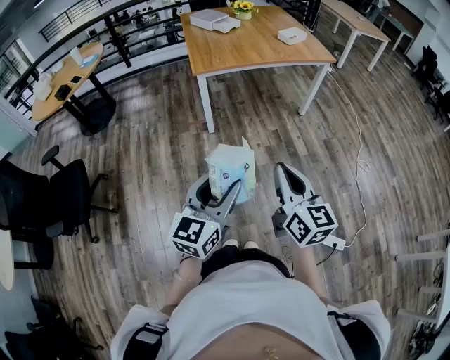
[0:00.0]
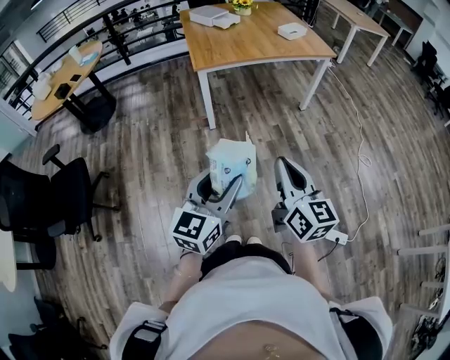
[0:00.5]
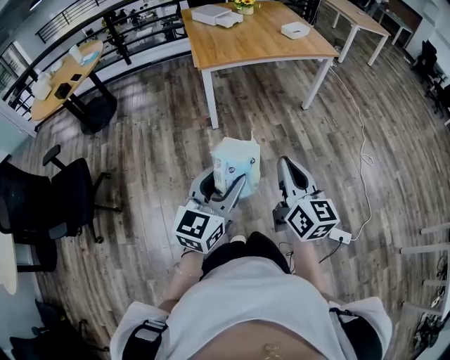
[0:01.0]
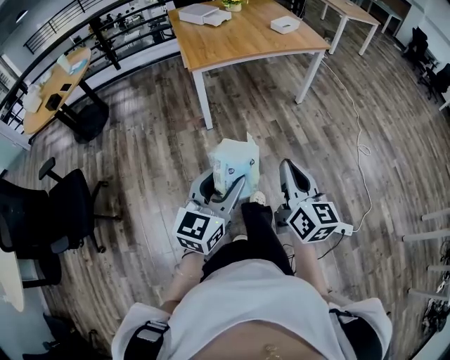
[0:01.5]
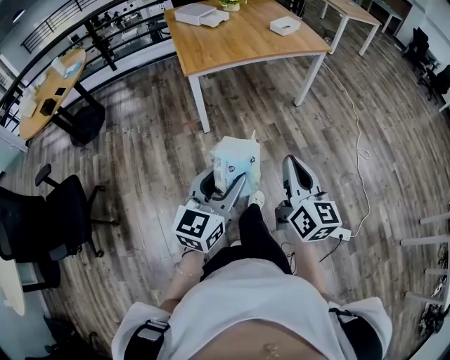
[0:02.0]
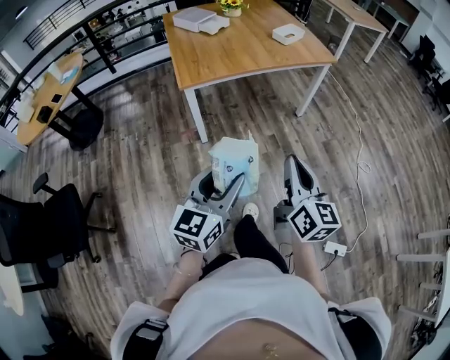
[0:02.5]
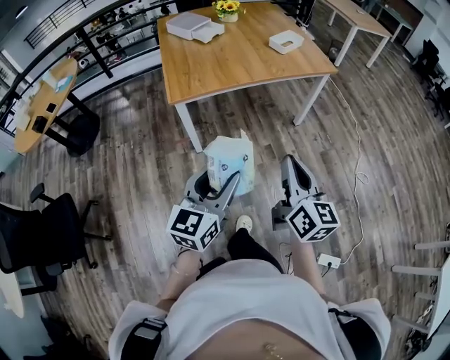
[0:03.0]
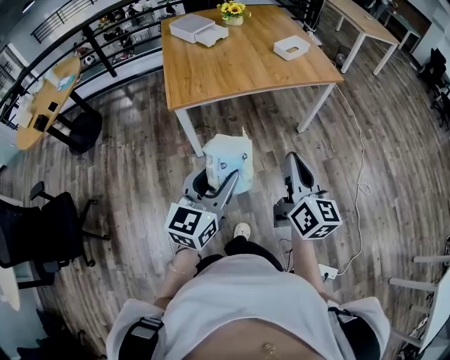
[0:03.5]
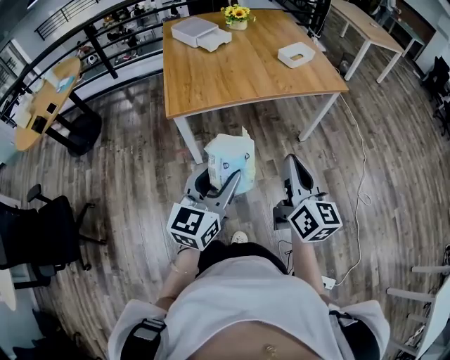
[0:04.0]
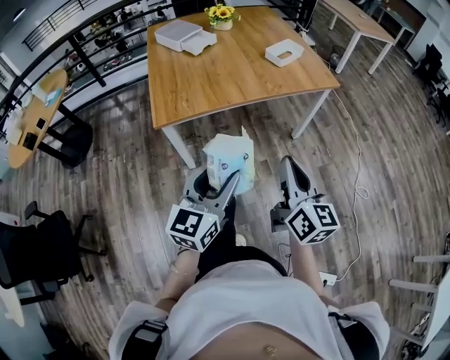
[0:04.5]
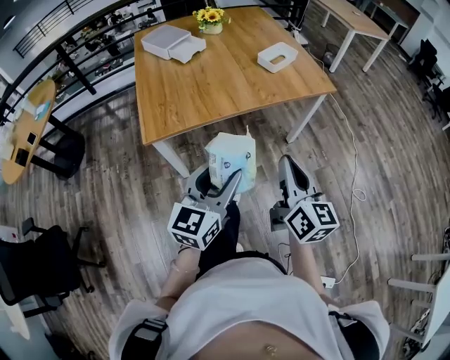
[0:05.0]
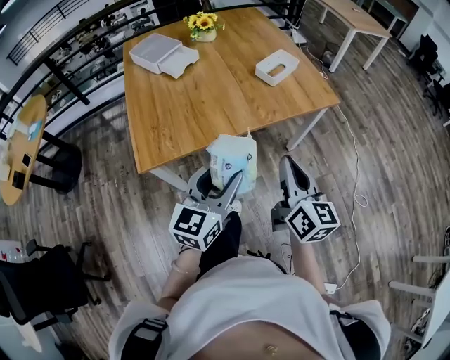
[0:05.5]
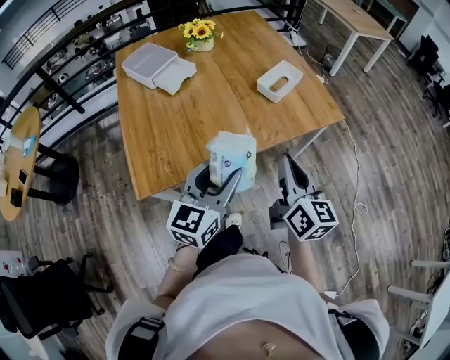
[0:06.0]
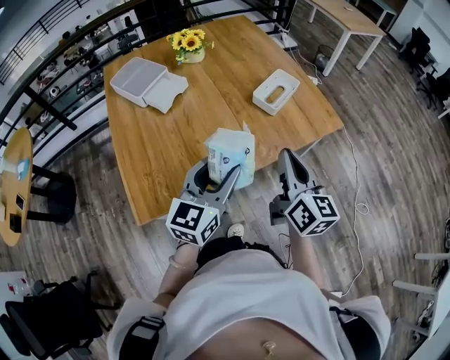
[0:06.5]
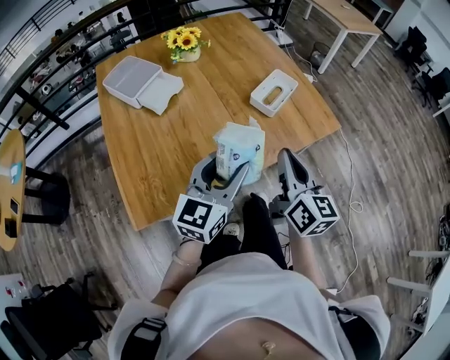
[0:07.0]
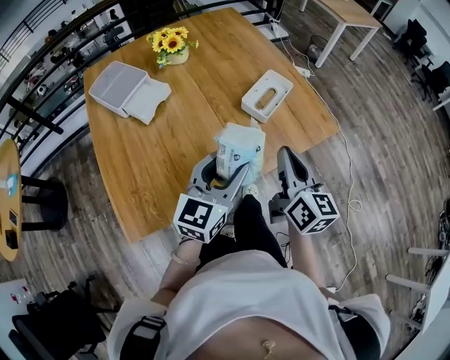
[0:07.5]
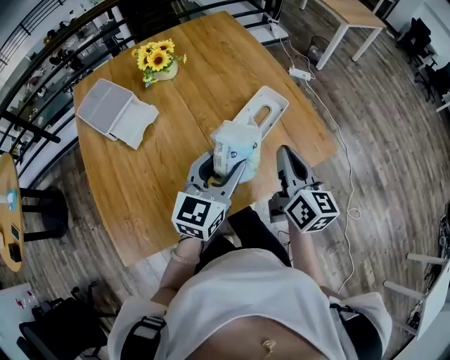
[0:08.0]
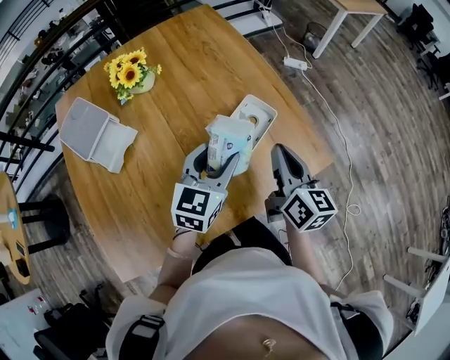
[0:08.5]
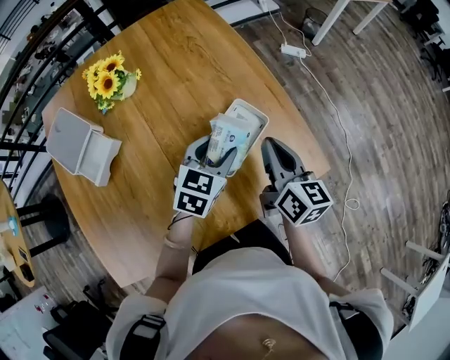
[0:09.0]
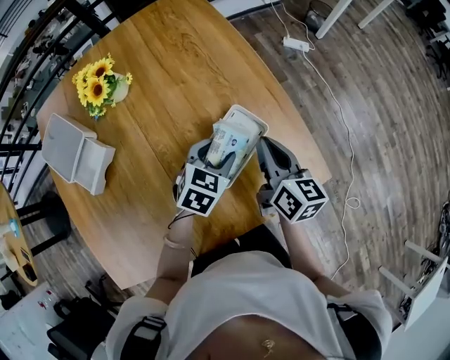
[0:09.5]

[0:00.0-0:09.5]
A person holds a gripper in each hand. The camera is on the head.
0:00.0 to 0:02.0: Both grippers move forward, about 5 cm.
0:02.0 to 0:04.0: Both grippers travel together forward, some 30 cm.
0:04.0 to 0:05.5: Both grippers travel together forward, approximately 20 cm.
0:05.5 to 0:07.5: Both grippers move forward, about 25 cm.
0:07.5 to 0:09.5: The right gripper is displaced forward by approximately 30 cm. Meanwhile the left gripper shifts about 35 cm forward and downward, and tilts its fingers approximately 40 degrees downward.

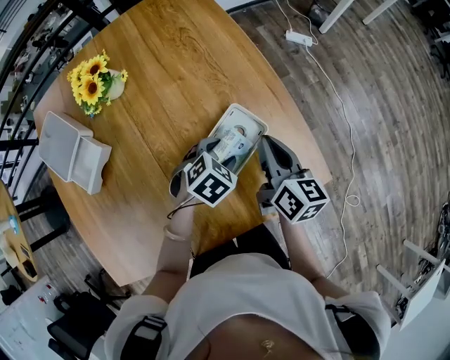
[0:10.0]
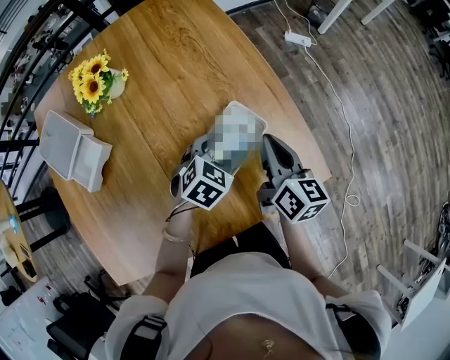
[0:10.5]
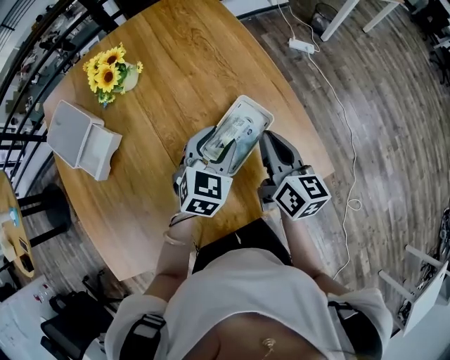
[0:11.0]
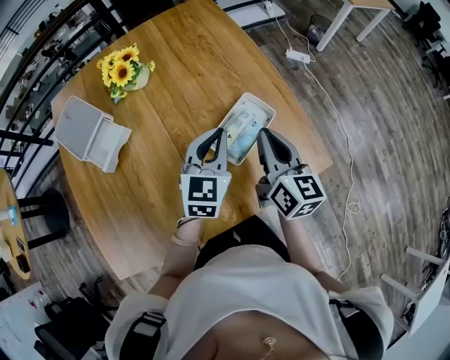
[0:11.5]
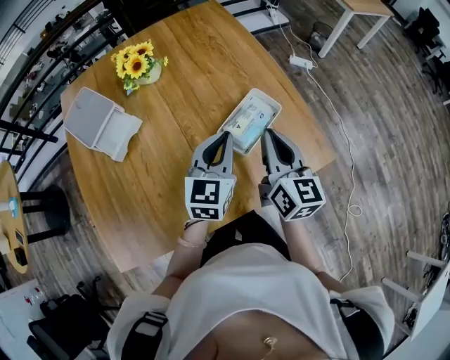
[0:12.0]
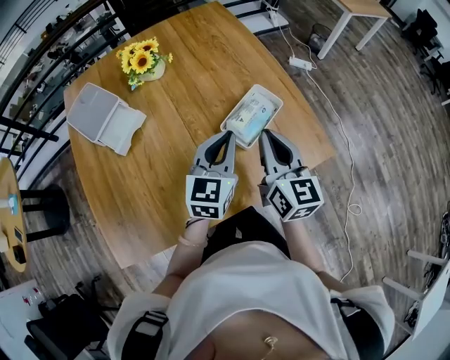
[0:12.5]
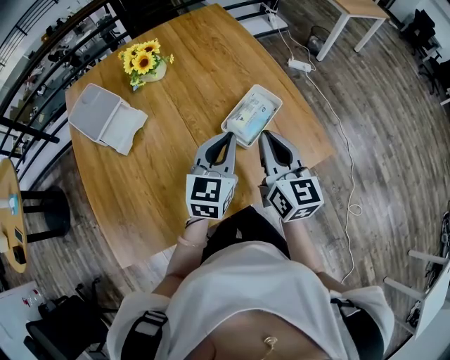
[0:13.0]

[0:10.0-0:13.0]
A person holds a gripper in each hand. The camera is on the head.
0:10.0 to 0:11.5: The left gripper shifts about 15 cm upward, points its fingers roughly 40 degrees further upward, and closes up, while the right gripper shifts approximately 10 cm upward and backward.
0:11.5 to 0:13.0: Both grippers move backward, approximately 10 cm.

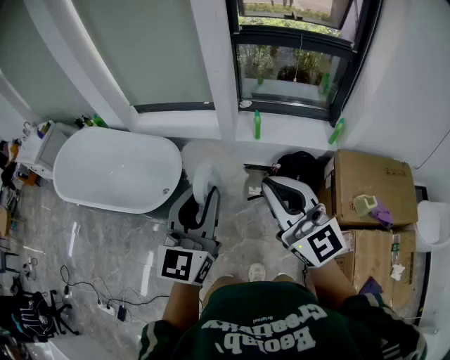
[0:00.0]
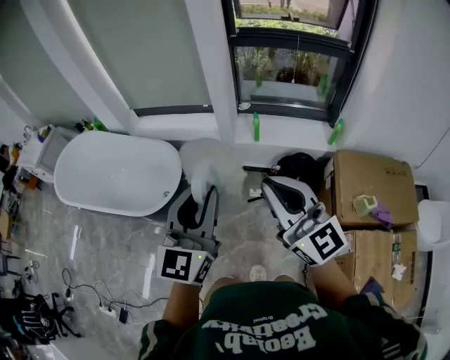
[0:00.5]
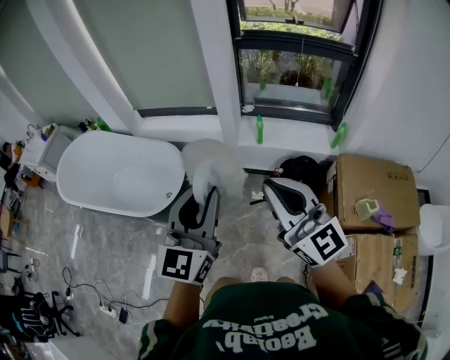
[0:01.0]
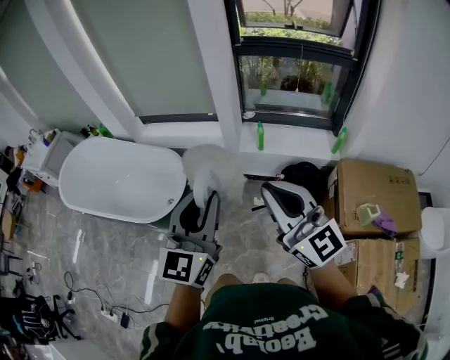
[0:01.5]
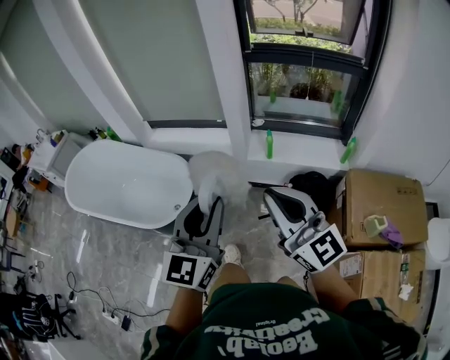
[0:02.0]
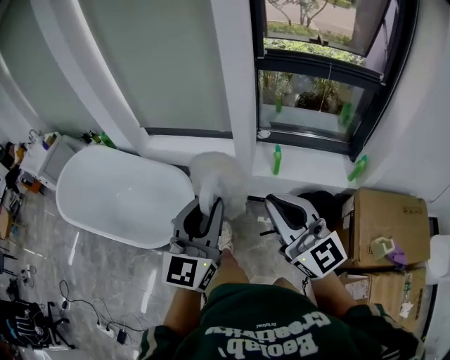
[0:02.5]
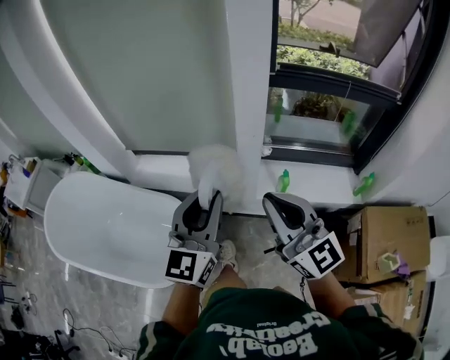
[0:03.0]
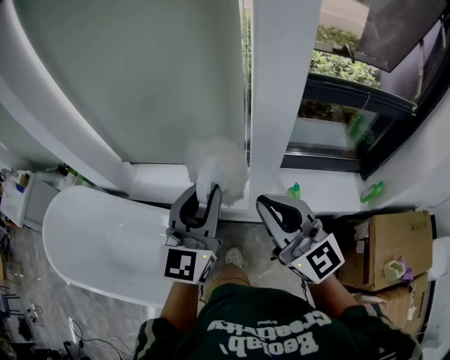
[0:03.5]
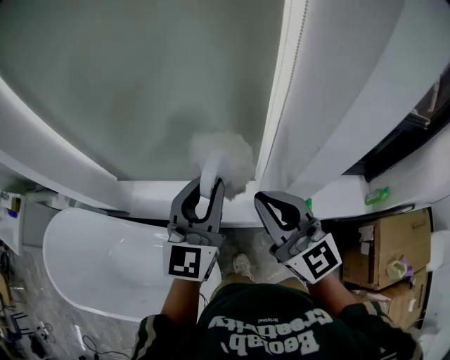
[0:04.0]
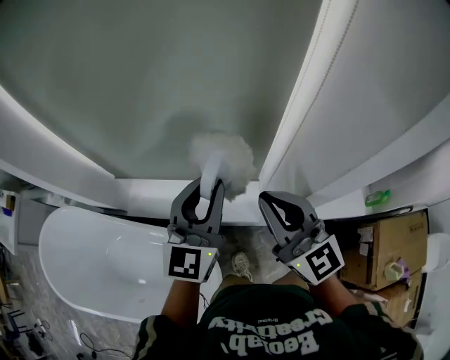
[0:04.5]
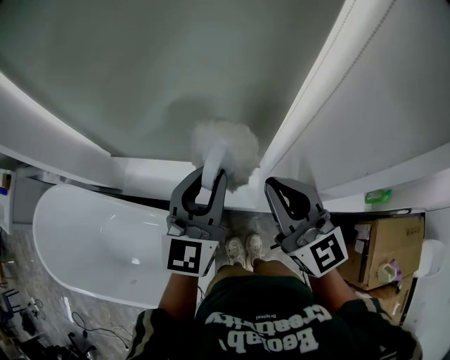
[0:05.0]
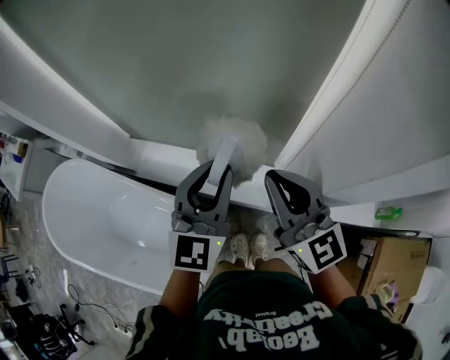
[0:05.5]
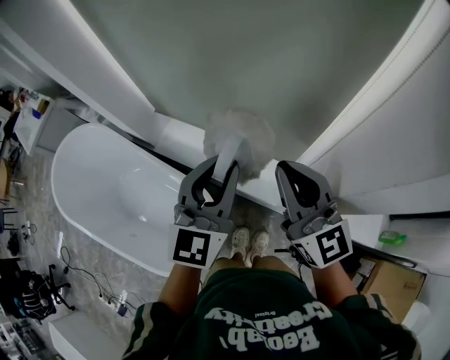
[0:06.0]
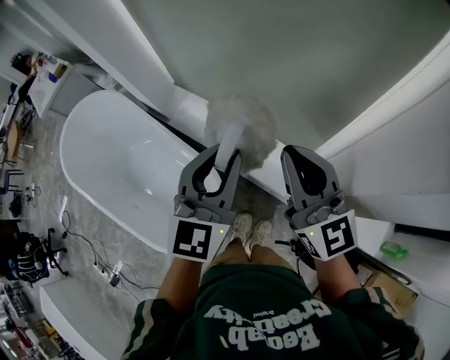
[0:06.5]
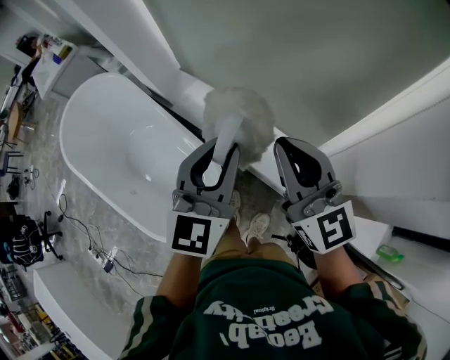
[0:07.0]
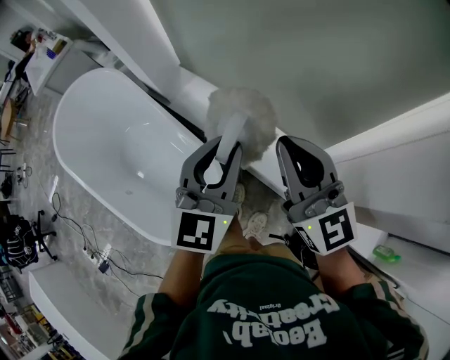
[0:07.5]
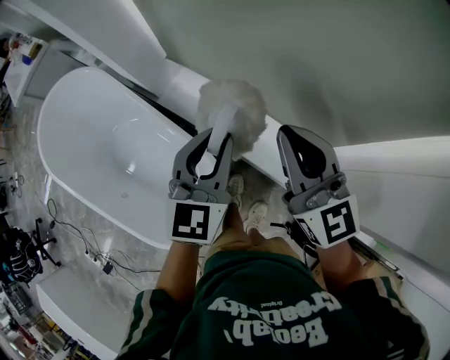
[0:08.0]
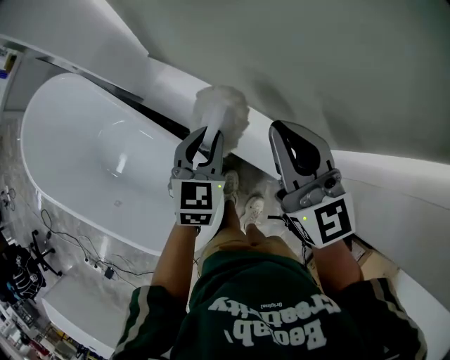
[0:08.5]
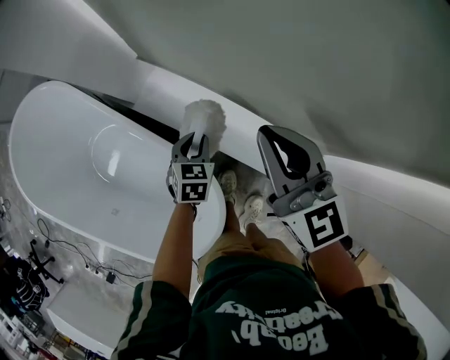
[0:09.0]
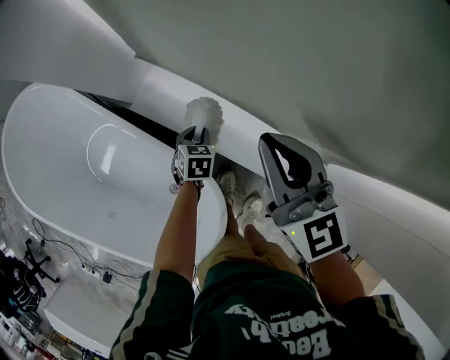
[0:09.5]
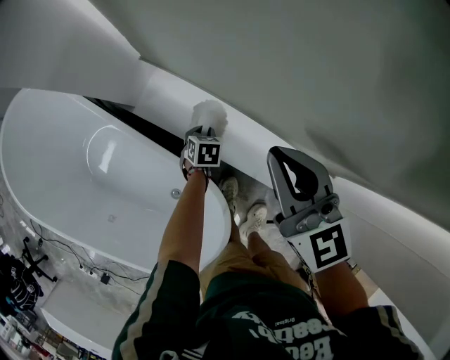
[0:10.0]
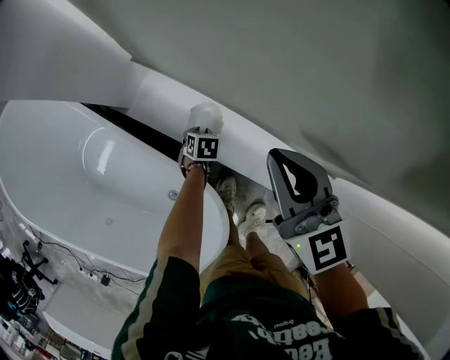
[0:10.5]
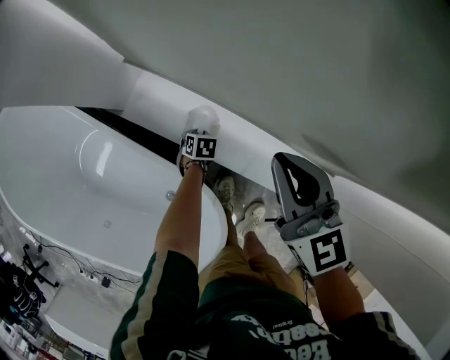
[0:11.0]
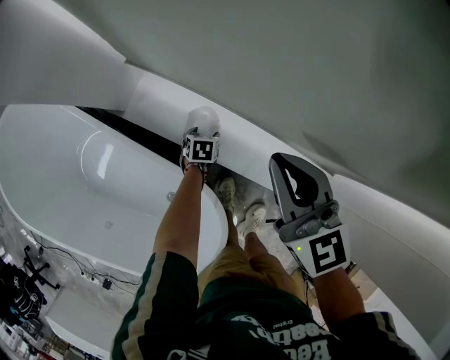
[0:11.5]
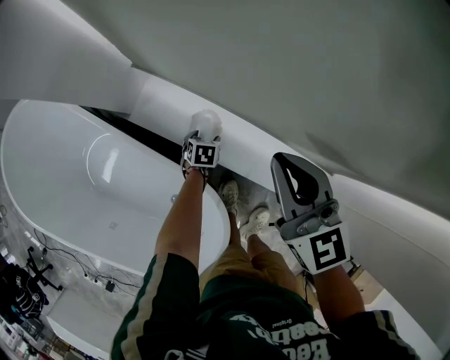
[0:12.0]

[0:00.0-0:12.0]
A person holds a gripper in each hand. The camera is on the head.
0:00.0 to 0:02.0: The grippers stay close to where they were, moving slightly.
0:02.0 to 0:04.0: The pair of grippers is taken forward, roughly 60 cm.
0:04.0 to 0:06.0: The left gripper changes place by some 5 cm, and rotates some 20 degrees. Meanwhile the right gripper shifts by approximately 5 cm.
0:06.0 to 0:08.0: The left gripper shifts roughly 15 cm downward, to the left and forward; the right gripper heads forward, to the left and downward, covering about 15 cm.
0:08.0 to 0:10.0: The right gripper heads downward, forward and to the left, covering about 20 cm. The left gripper travels downward by about 50 cm, and angles its fingers downward, by approximately 50 degrees.
0:10.0 to 0:12.0: The left gripper is displaced downward by roughly 5 cm, and opens up.

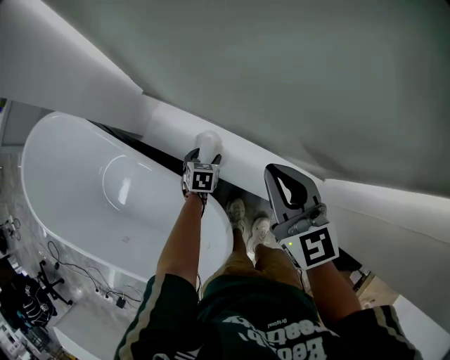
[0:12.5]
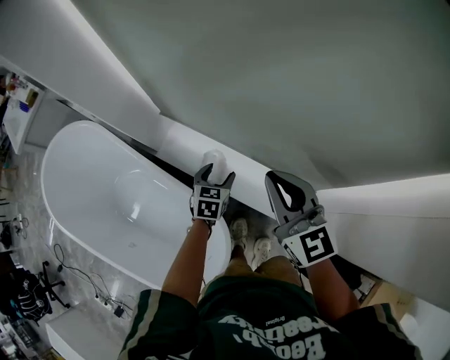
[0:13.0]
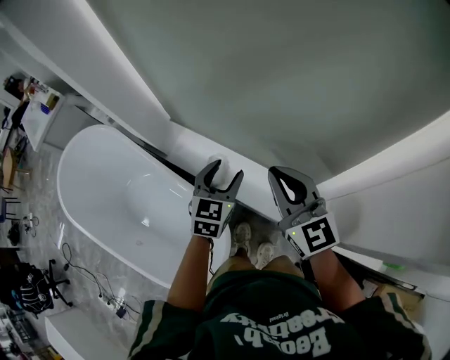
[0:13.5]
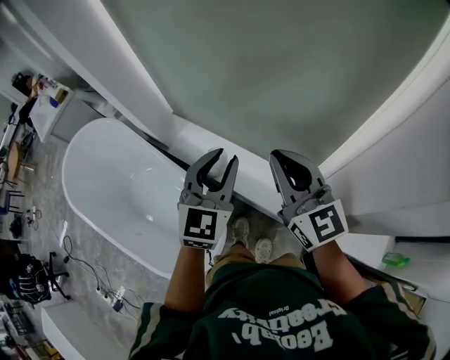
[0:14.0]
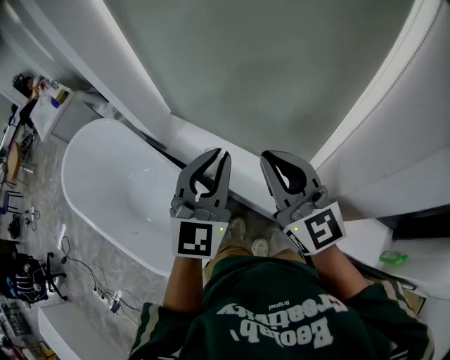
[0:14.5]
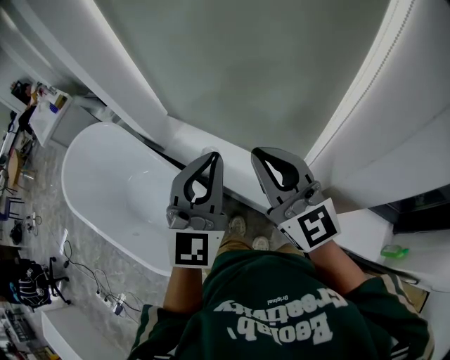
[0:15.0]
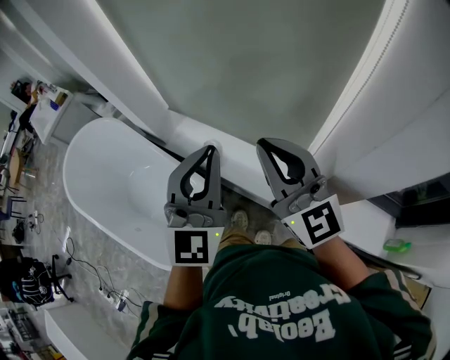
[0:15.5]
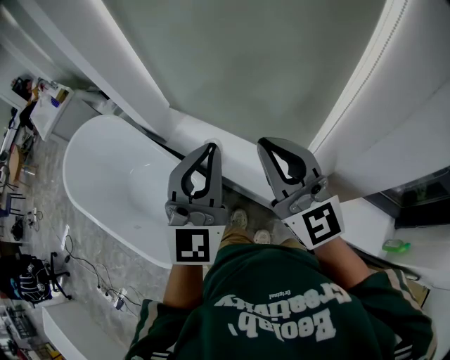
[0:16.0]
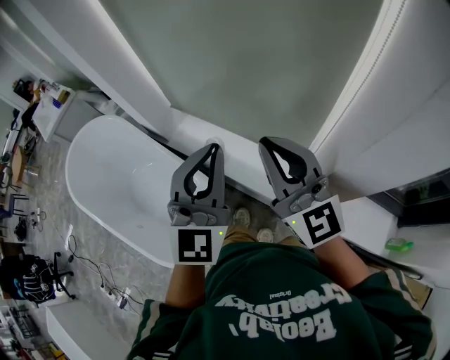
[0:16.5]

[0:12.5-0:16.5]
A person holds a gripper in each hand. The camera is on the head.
0:12.5 to 0:14.5: The left gripper moves upward and backward, about 60 cm, points its fingers about 60 degrees further upward, and closes. The right gripper heads upward and backward, covering some 25 cm, and swivels roughly 30 degrees.
0:14.5 to 0:16.5: The grippers stay close to where they were, moving slightly.
